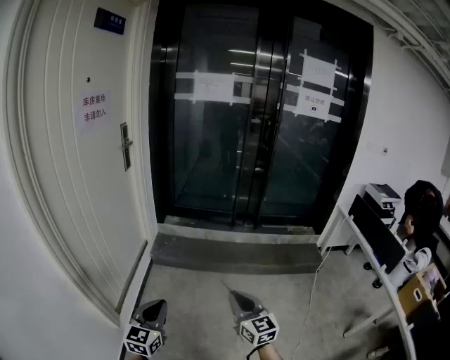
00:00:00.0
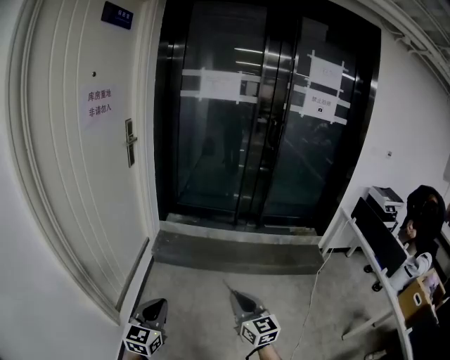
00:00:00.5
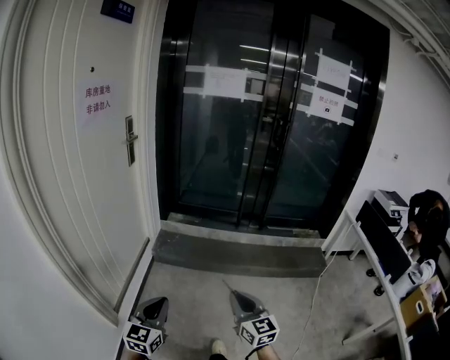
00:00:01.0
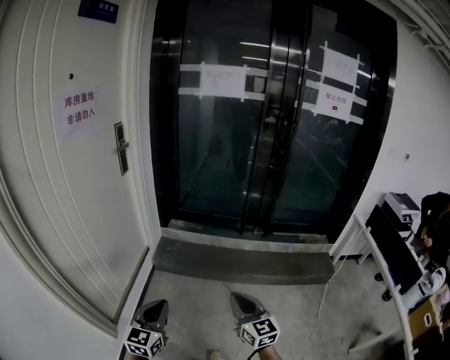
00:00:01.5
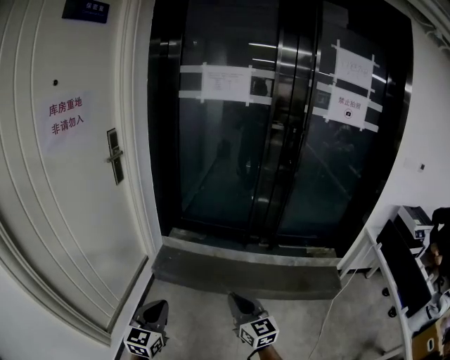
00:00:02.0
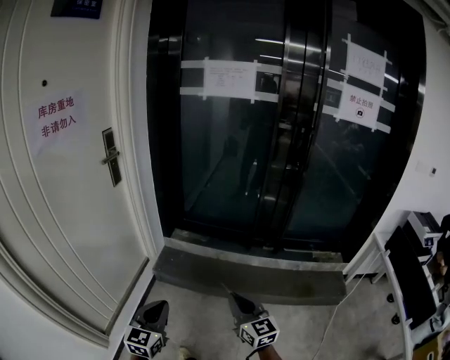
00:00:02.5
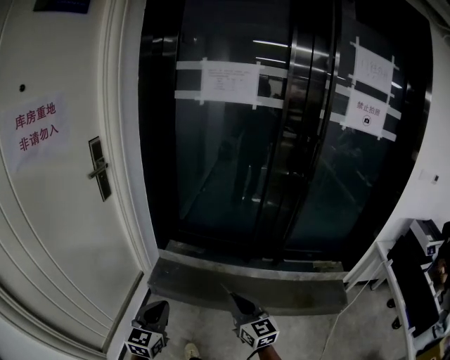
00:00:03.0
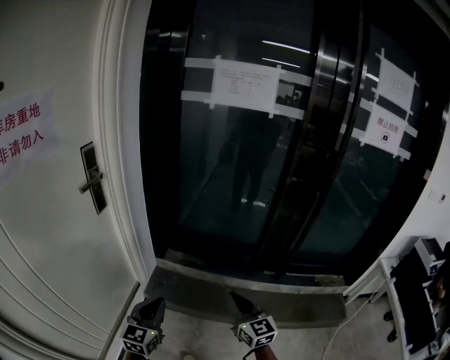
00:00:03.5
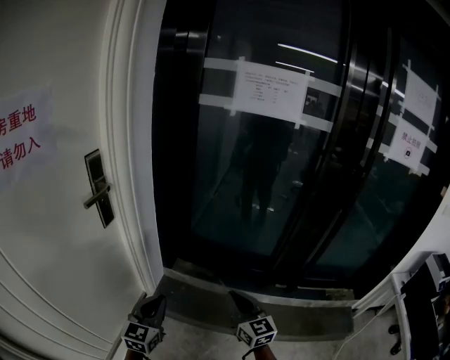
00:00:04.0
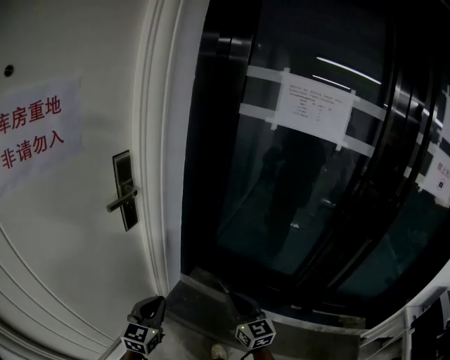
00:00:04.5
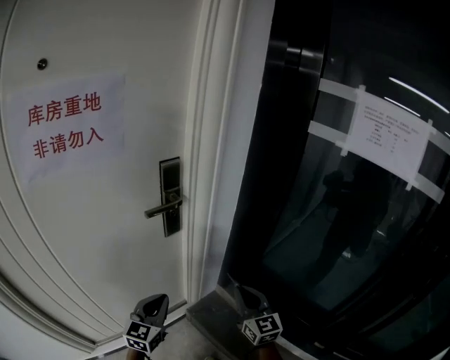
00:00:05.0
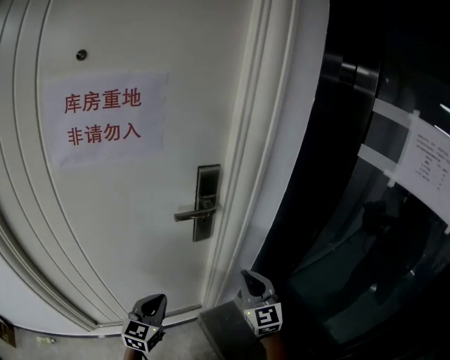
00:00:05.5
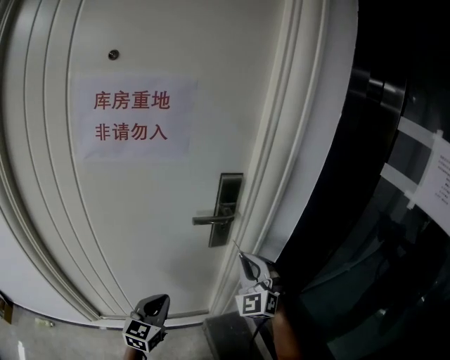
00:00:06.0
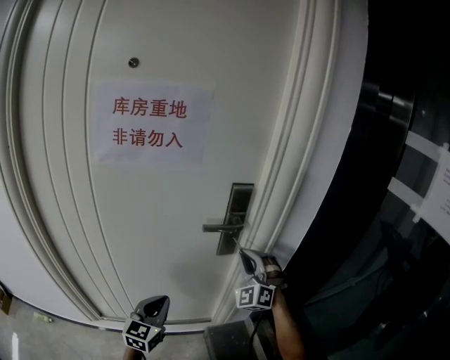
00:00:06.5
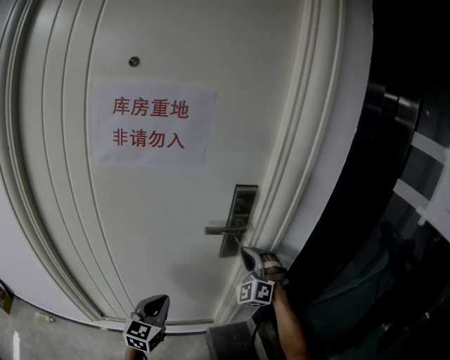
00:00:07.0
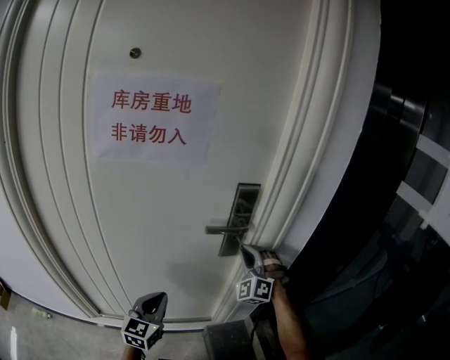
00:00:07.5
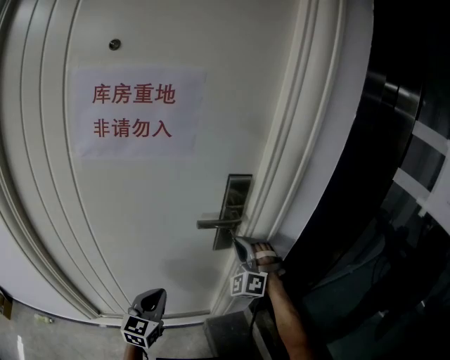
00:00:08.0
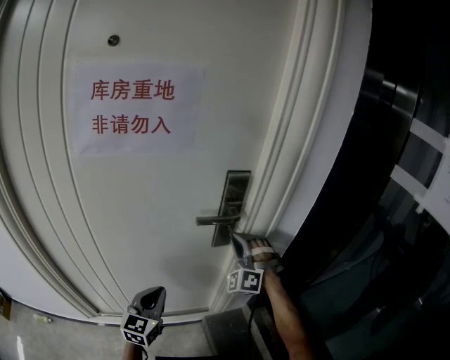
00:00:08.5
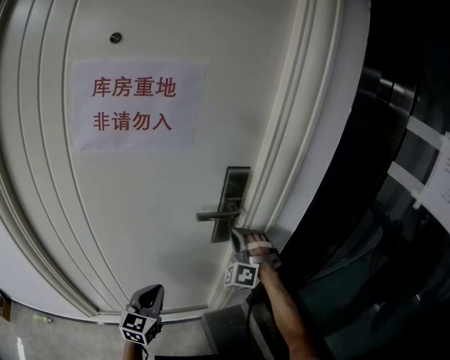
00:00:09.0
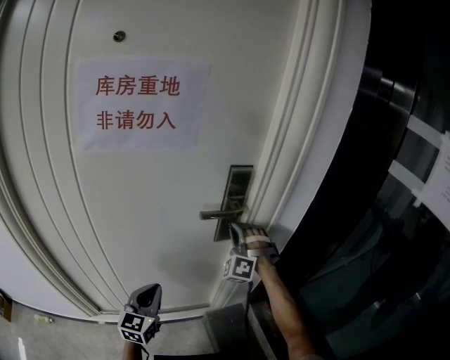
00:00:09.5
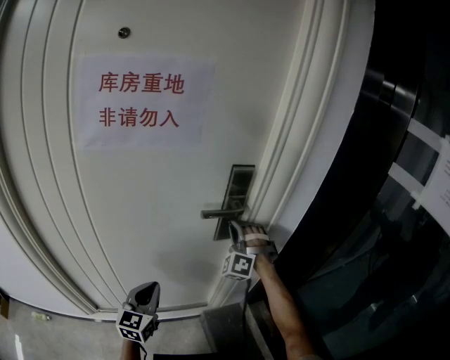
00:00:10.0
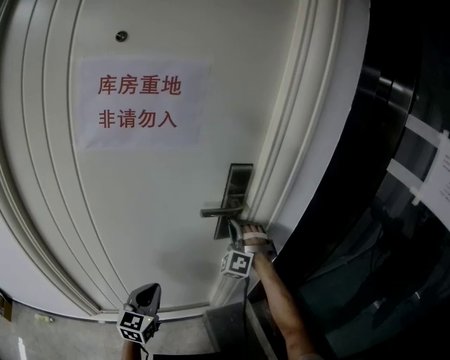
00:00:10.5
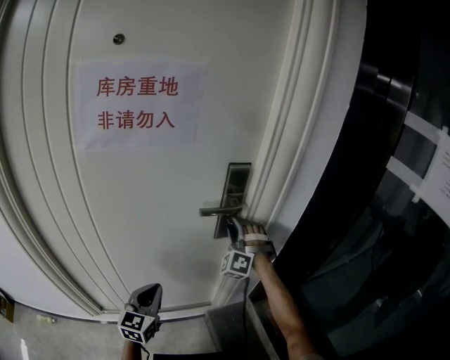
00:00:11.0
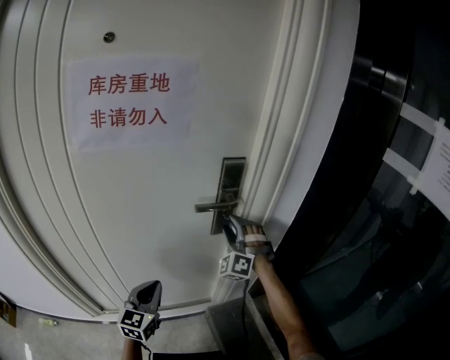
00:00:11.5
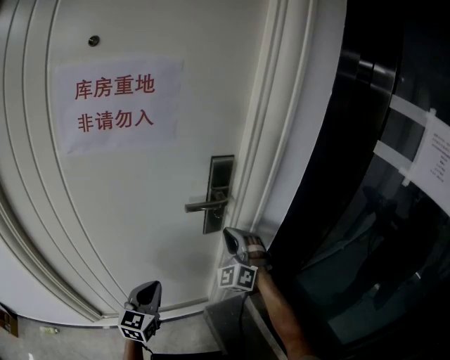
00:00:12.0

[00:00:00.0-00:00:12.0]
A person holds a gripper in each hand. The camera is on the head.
00:00:00.0 to 00:00:02.0: Both grippers travel together forward, approximately 25 cm.
00:00:02.0 to 00:00:04.0: The pair of grippers is taken forward, approximately 40 cm.
00:00:04.0 to 00:00:06.0: The right gripper shifts by some 40 cm, and changes its angle by about 70 degrees. Meanwhile the left gripper shifts by approximately 20 cm, and changes its angle by roughly 60 degrees.
00:00:06.0 to 00:00:08.0: The right gripper is displaced forward by some 10 cm, and swivels approximately 30 degrees.
00:00:08.0 to 00:00:10.0: The grippers move only a little.
00:00:10.0 to 00:00:12.0: The right gripper travels backward by about 5 cm, rotates roughly 20 degrees, and opens and closes again.

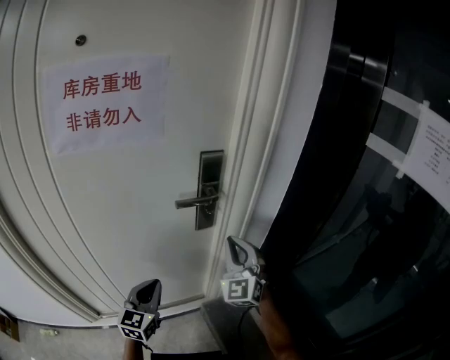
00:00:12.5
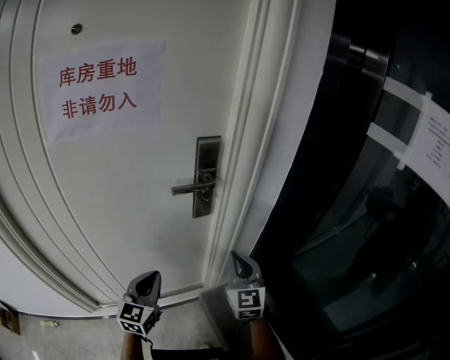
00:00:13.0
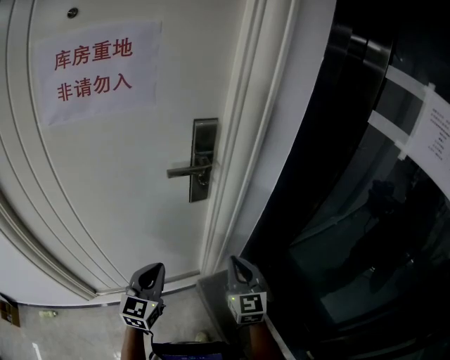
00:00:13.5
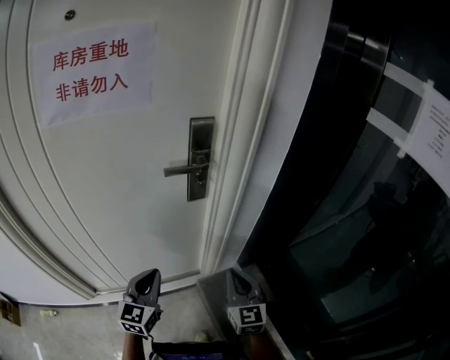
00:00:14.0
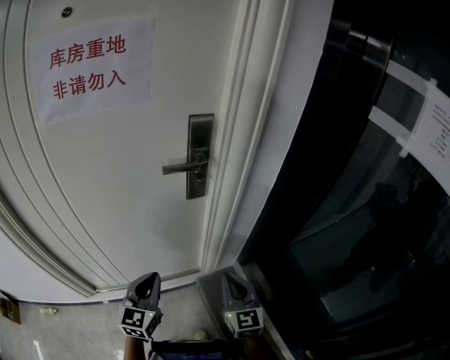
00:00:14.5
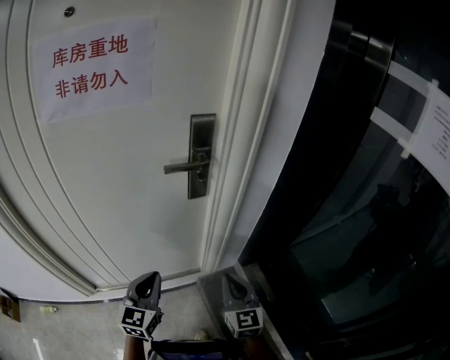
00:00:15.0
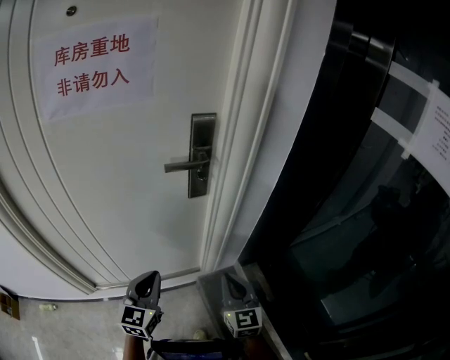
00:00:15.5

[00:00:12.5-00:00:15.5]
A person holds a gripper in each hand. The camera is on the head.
00:00:12.5 to 00:00:14.0: The left gripper changes place by some 5 cm, while the right gripper is displaced downward, backward and to the right by some 20 cm, and swivels roughly 40 degrees.
00:00:14.0 to 00:00:15.5: There are only small adjustments of the grippers.

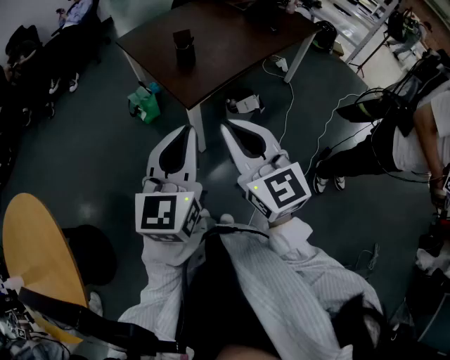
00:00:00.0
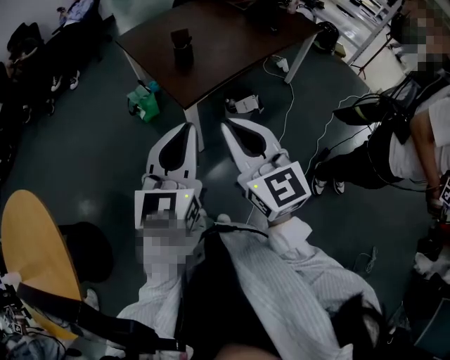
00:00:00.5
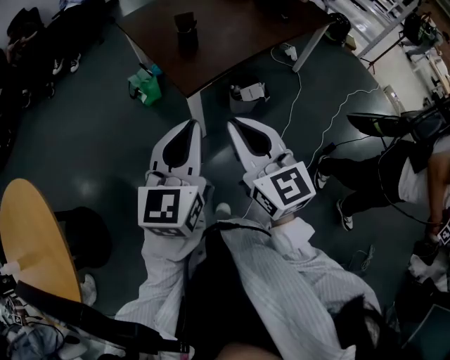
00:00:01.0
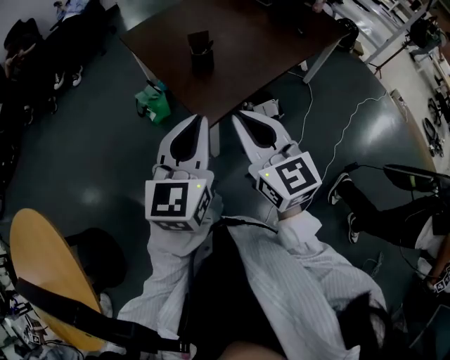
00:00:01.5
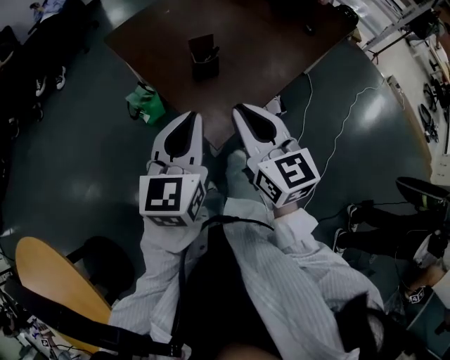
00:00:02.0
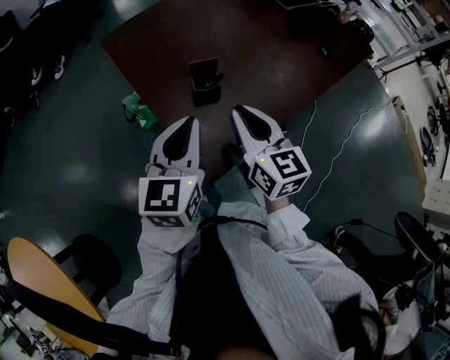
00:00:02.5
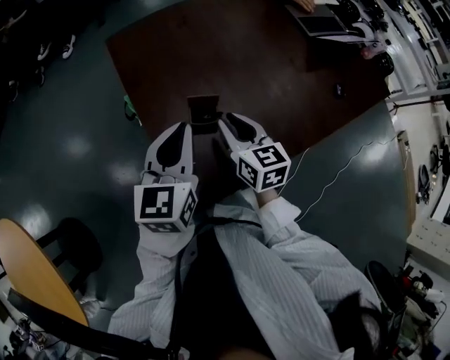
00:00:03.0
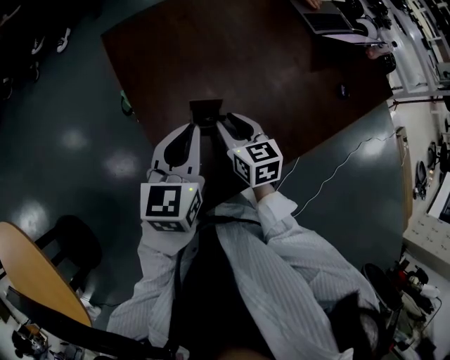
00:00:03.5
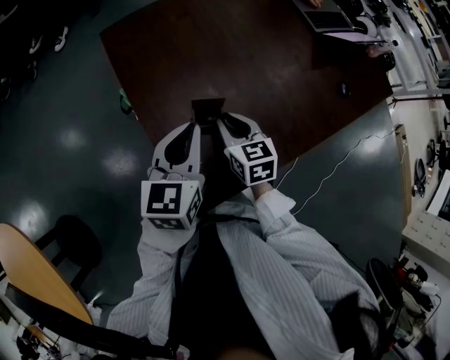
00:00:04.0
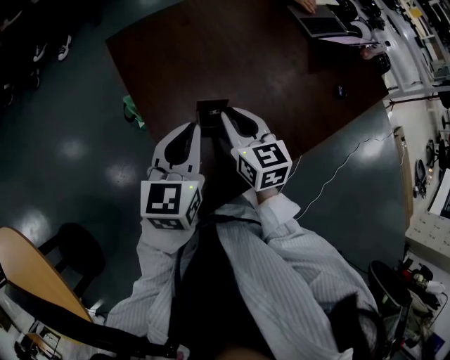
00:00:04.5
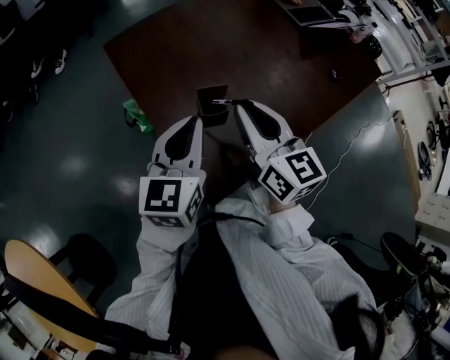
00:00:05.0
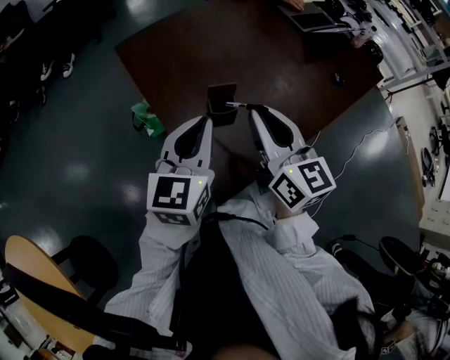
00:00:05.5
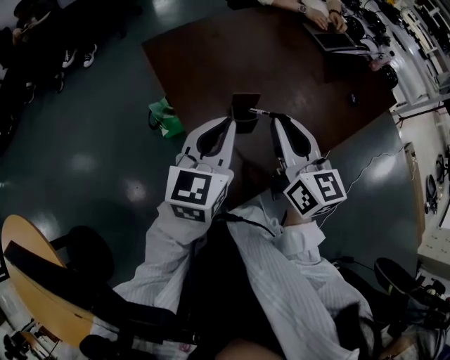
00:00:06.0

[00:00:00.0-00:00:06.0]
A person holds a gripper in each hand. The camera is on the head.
00:00:00.0 to 00:00:02.0: The two grippers go roughly 35 cm forward.
00:00:02.0 to 00:00:04.0: The left gripper travels forward by approximately 30 cm, while the right gripper moves forward and downward, approximately 35 cm, and turns by roughly 30 degrees.
00:00:04.0 to 00:00:06.0: The left gripper goes some 10 cm upward and backward; the right gripper goes roughly 25 cm upward and backward, and swivels some 30 degrees.

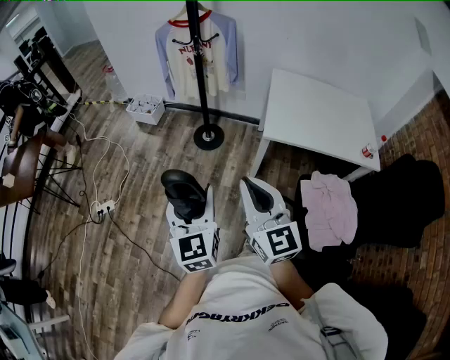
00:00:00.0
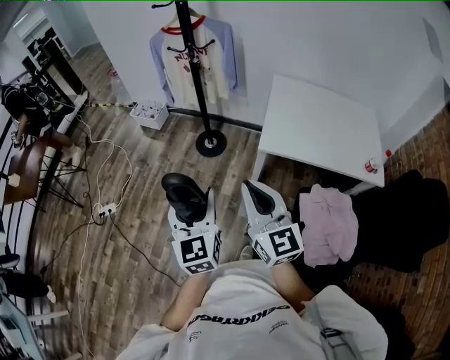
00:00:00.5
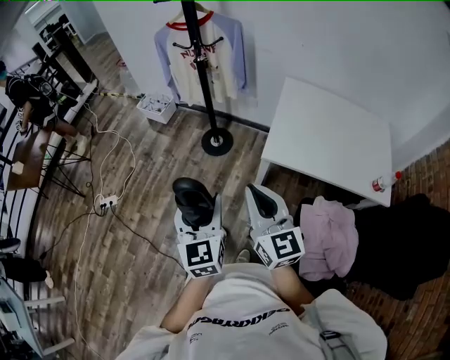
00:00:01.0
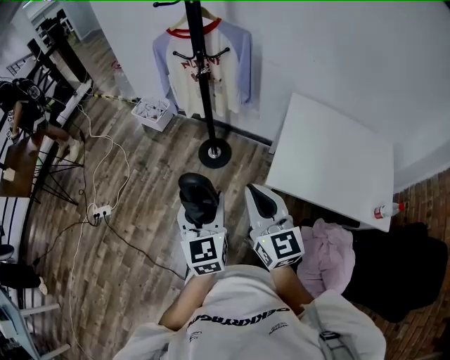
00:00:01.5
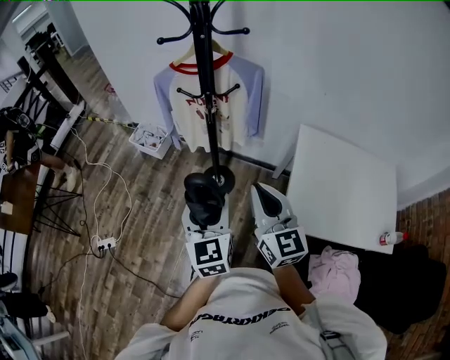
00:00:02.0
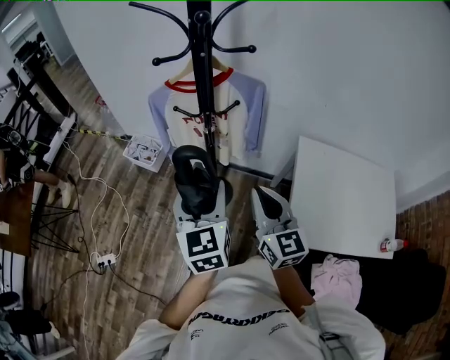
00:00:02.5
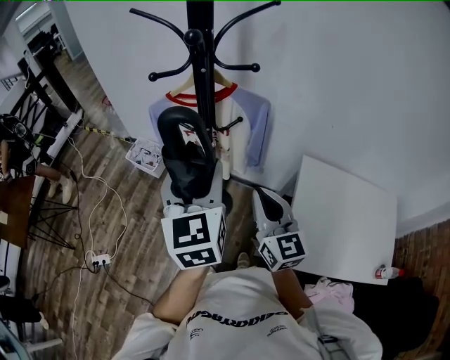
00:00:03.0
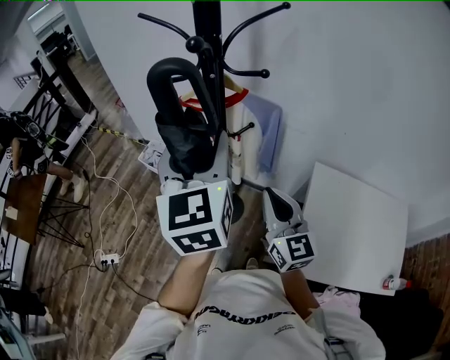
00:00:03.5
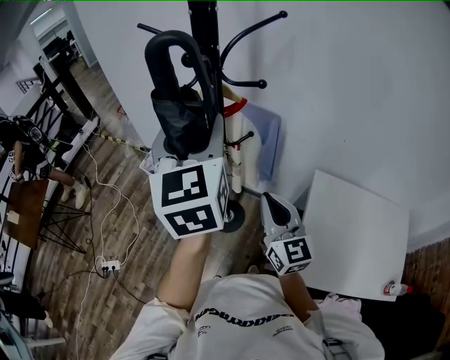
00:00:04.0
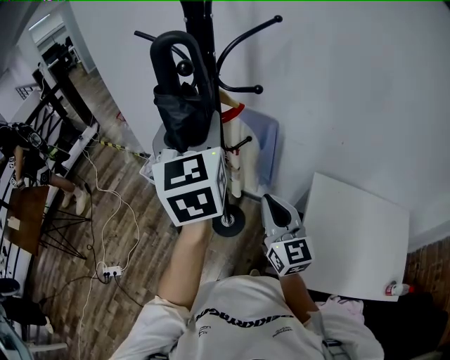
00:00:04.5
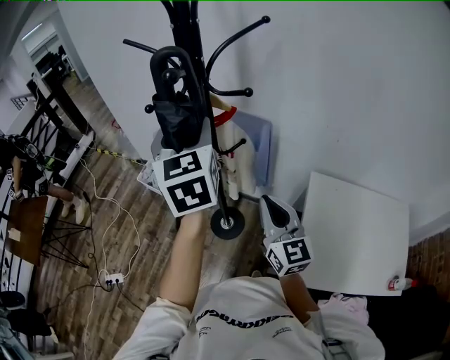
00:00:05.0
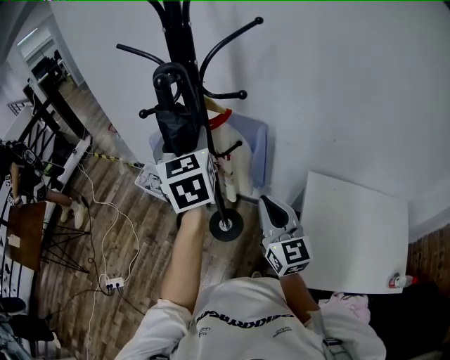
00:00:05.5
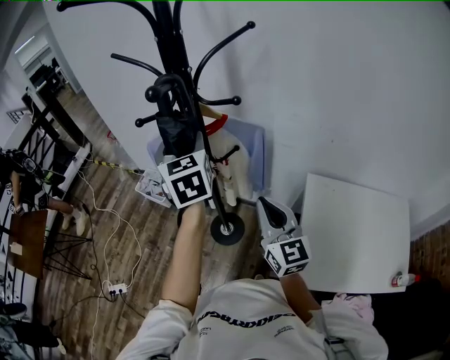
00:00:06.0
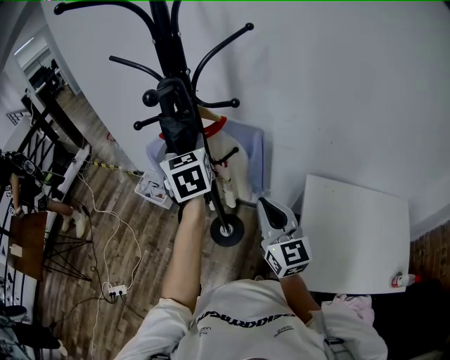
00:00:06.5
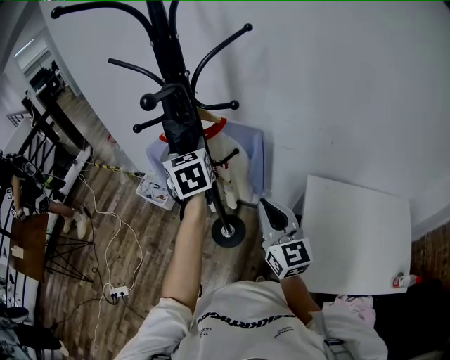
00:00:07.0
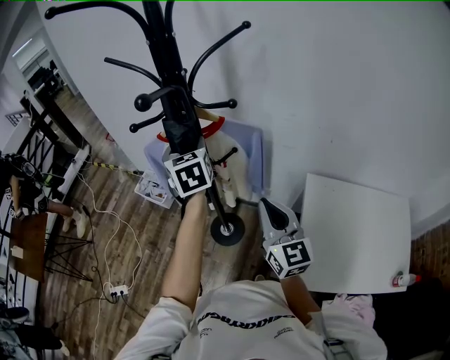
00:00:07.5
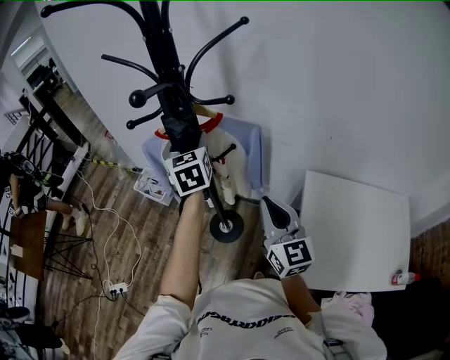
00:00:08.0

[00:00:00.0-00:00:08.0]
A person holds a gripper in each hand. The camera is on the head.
00:00:00.0 to 00:00:02.0: Both grippers are carried forward, approximately 50 cm.
00:00:02.0 to 00:00:04.0: The right gripper shifts roughly 20 cm forward. The left gripper moves forward and upward, some 35 cm.
00:00:04.0 to 00:00:06.0: The left gripper goes about 15 cm forward and downward.
00:00:06.0 to 00:00:08.0: The left gripper travels downward by some 5 cm.
